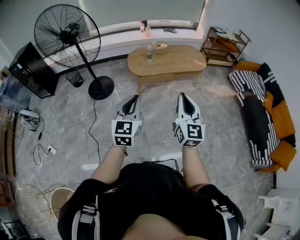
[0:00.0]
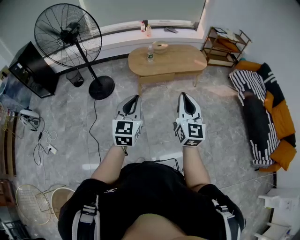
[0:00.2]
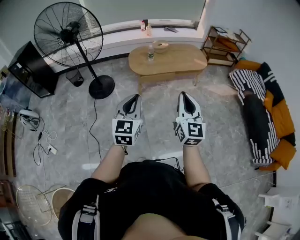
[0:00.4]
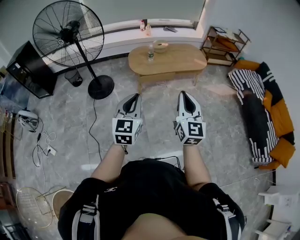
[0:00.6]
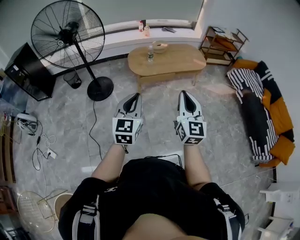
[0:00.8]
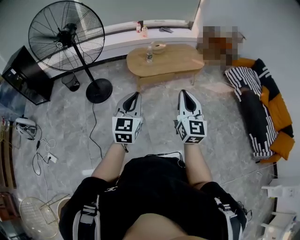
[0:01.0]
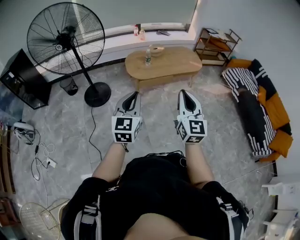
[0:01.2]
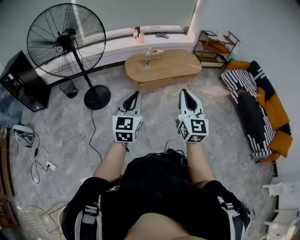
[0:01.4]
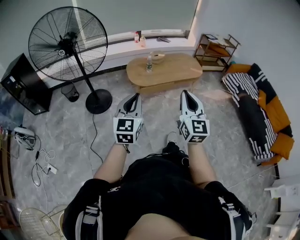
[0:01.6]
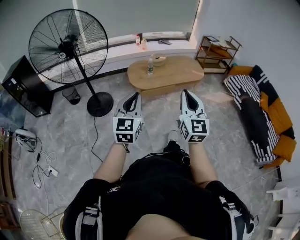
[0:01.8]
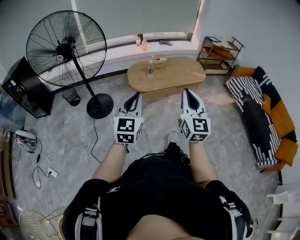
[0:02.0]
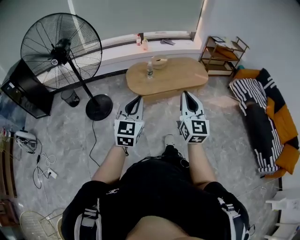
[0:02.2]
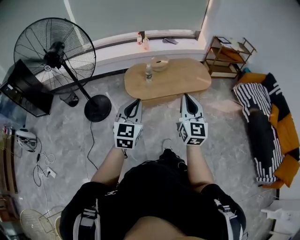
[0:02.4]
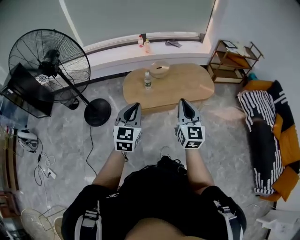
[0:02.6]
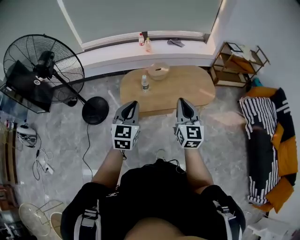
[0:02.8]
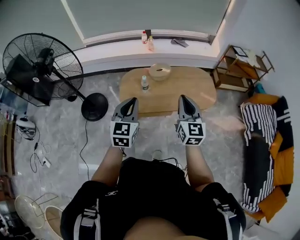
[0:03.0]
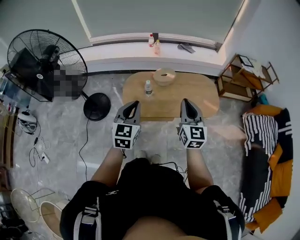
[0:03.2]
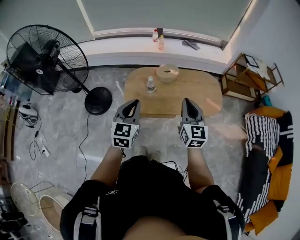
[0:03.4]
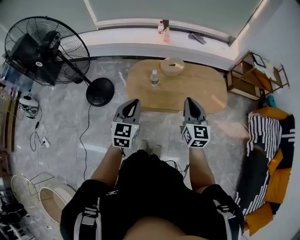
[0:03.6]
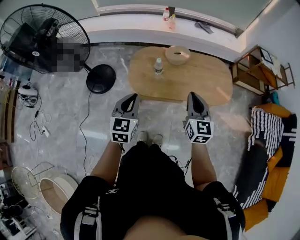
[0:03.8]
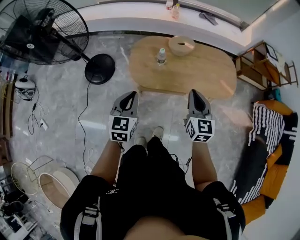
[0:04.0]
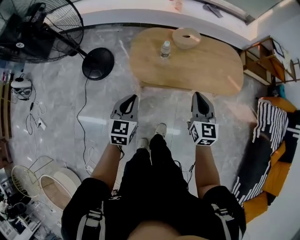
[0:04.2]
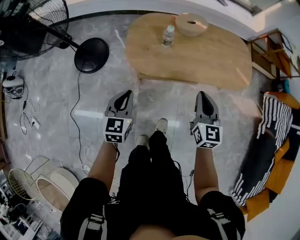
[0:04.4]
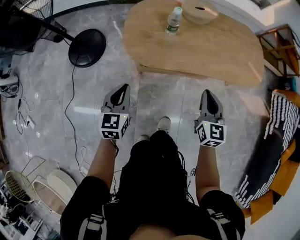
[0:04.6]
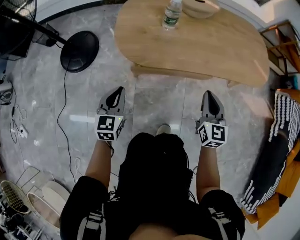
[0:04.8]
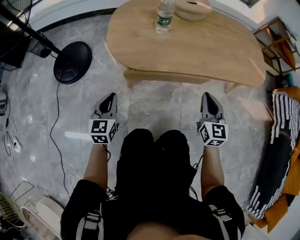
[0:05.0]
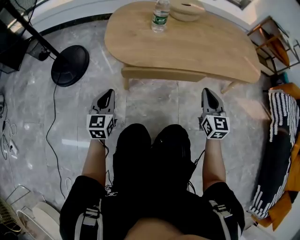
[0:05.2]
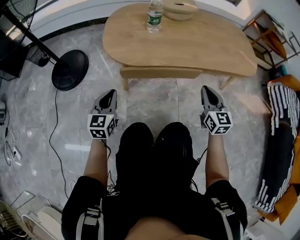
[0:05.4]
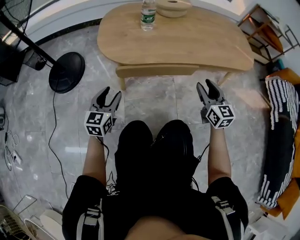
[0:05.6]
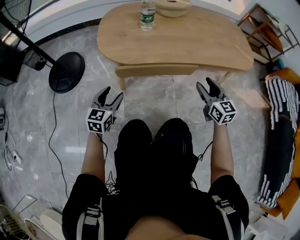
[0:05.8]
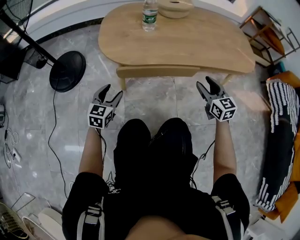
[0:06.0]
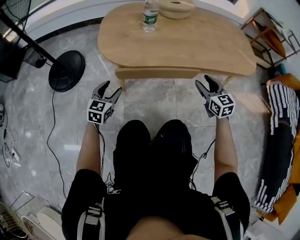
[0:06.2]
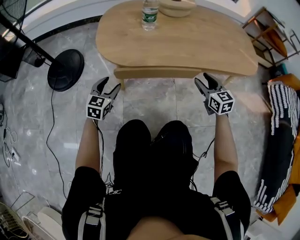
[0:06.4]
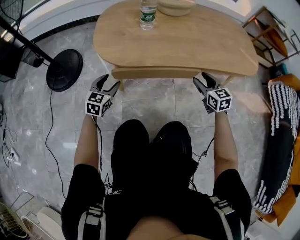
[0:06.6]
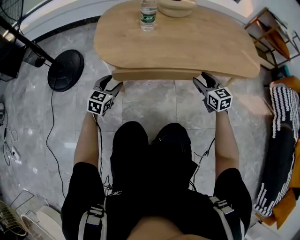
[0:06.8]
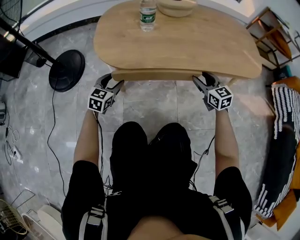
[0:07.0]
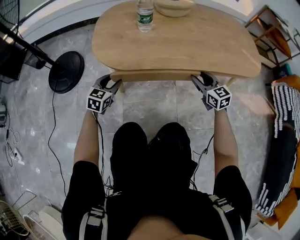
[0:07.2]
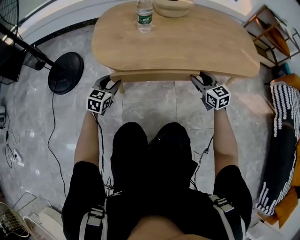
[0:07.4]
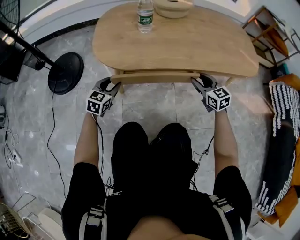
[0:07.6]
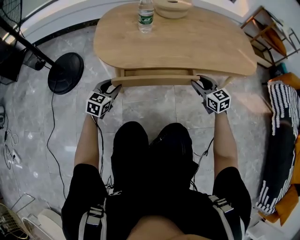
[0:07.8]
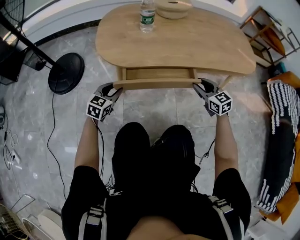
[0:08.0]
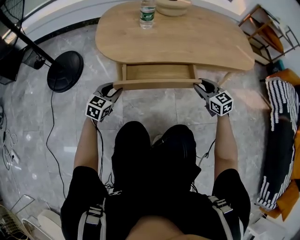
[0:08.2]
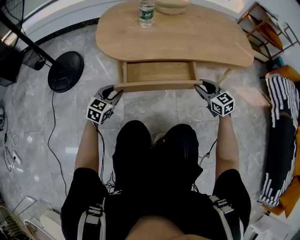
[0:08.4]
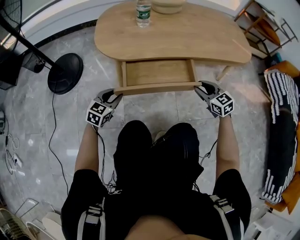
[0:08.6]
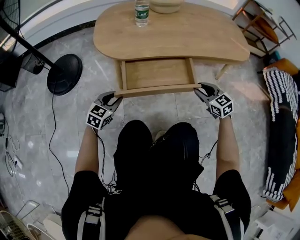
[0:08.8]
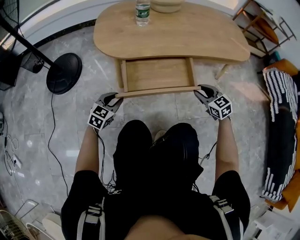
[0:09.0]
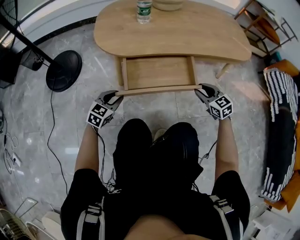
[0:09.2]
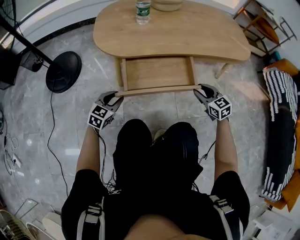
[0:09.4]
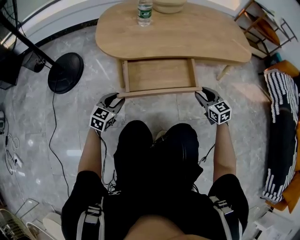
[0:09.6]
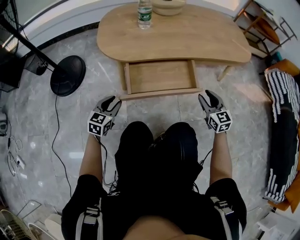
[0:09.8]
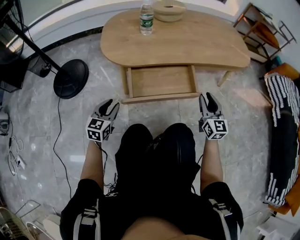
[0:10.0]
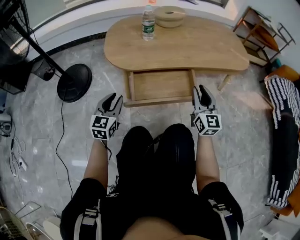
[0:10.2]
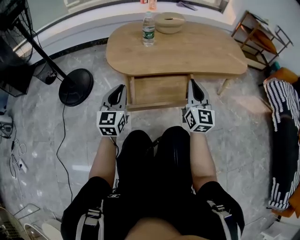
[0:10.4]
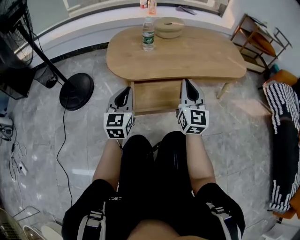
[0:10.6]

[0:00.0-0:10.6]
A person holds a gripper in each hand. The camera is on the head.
0:00.0 to 0:01.6: The two grippers go roughly 15 cm to the left.
0:01.6 to 0:03.0: Both grippers are carried forward, some 60 cm.
0:03.0 to 0:04.6: The grippers both shift downward by some 50 cm.
0:04.6 to 0:06.0: The right gripper shifts approximately 25 cm downward and to the right, and opens up; the left gripper shifts roughly 25 cm downward, and opens up.
0:06.0 to 0:07.6: The left gripper heads forward, covering about 10 cm; the right gripper shifts about 10 cm forward and downward.
0:07.6 to 0:09.0: Both grippers travel together backward, roughly 15 cm.
0:09.0 to 0:10.6: The right gripper moves upward and to the left, some 25 cm, points its fingers about 40 degrees further upward, and closes up. Meanwhile the left gripper heads upward, covering about 25 cm, changes its angle by about 40 degrees, and closes up.

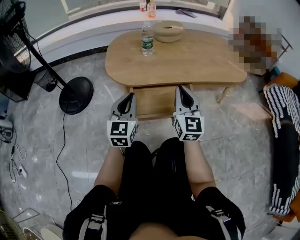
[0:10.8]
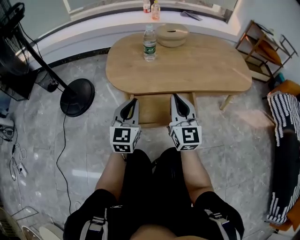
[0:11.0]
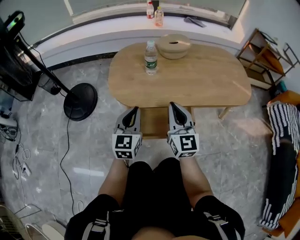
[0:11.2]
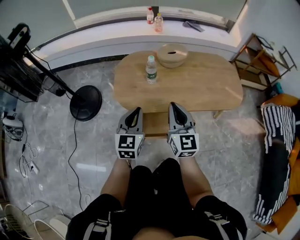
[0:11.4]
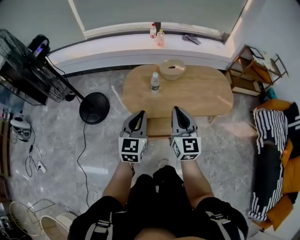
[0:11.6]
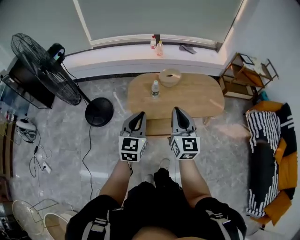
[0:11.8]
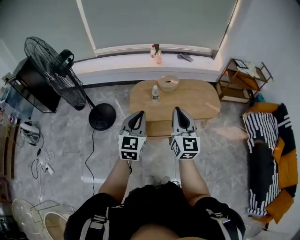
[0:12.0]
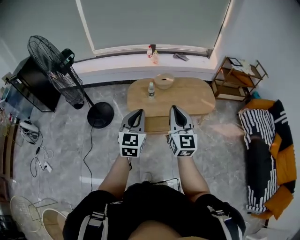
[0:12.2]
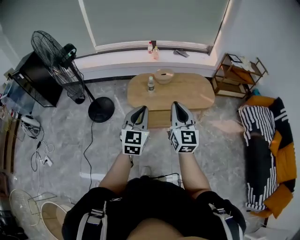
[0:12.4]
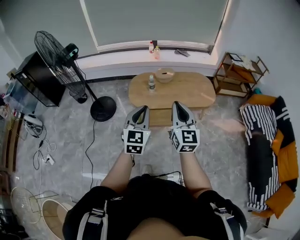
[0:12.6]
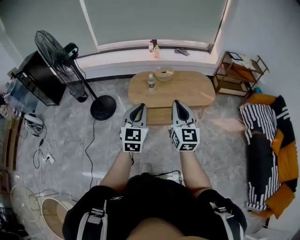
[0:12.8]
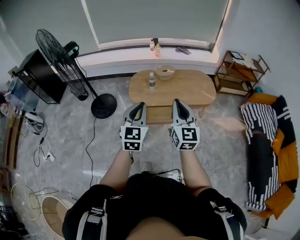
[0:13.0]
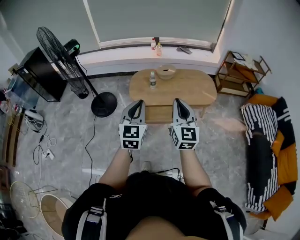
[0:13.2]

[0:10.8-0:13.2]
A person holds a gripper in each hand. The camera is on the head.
0:10.8 to 0:12.0: The two grippers go about 60 cm upward.
0:12.0 to 0:13.2: The two grippers go approximately 15 cm backward and to the right.

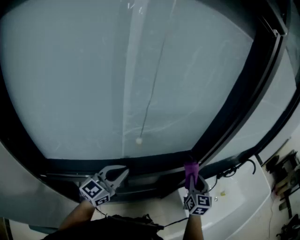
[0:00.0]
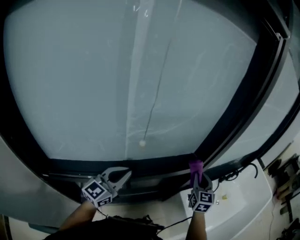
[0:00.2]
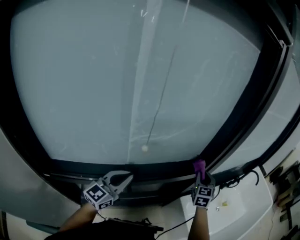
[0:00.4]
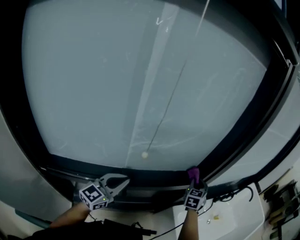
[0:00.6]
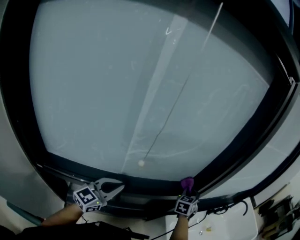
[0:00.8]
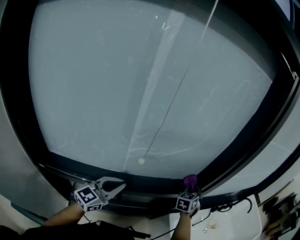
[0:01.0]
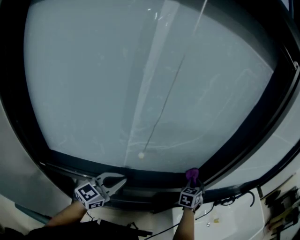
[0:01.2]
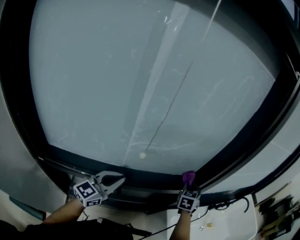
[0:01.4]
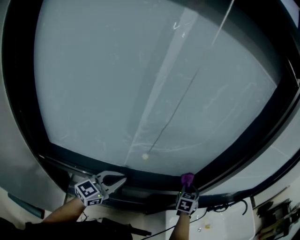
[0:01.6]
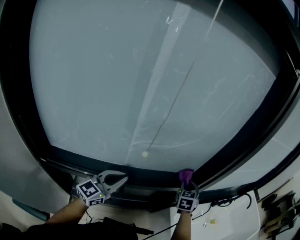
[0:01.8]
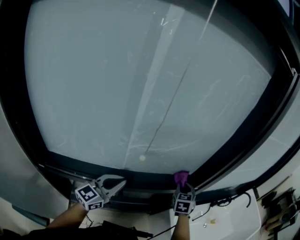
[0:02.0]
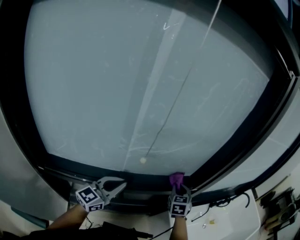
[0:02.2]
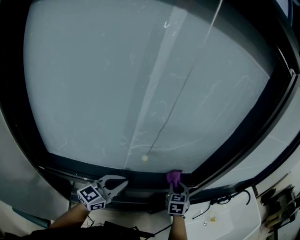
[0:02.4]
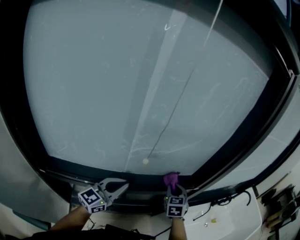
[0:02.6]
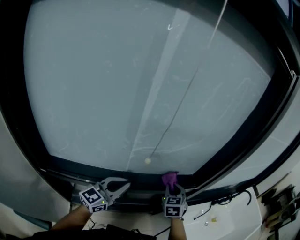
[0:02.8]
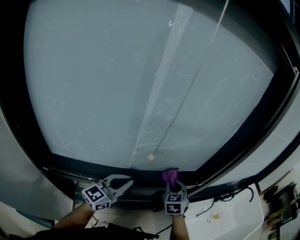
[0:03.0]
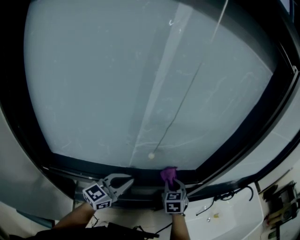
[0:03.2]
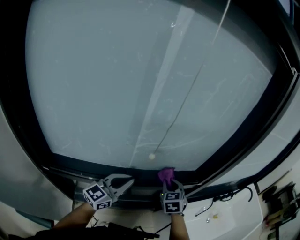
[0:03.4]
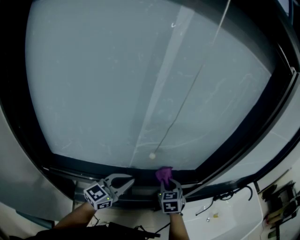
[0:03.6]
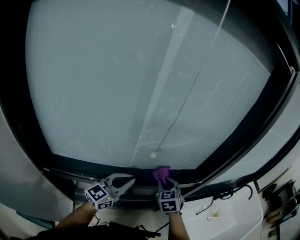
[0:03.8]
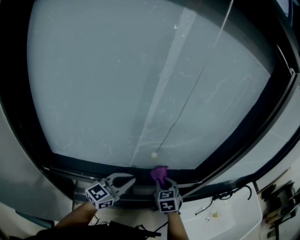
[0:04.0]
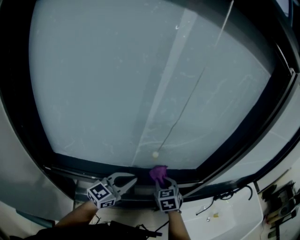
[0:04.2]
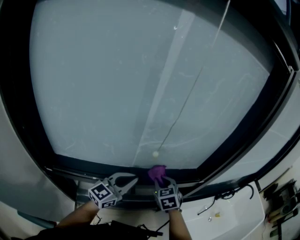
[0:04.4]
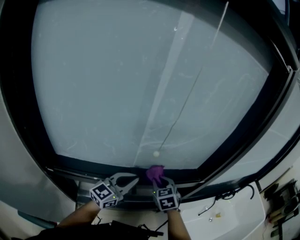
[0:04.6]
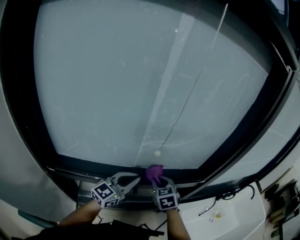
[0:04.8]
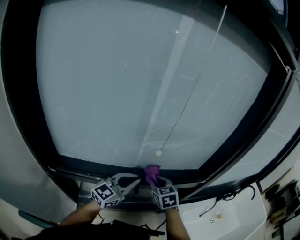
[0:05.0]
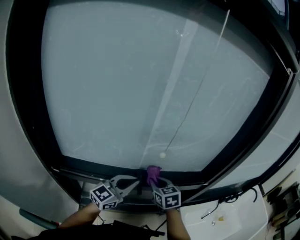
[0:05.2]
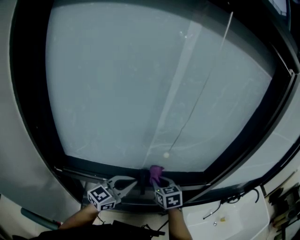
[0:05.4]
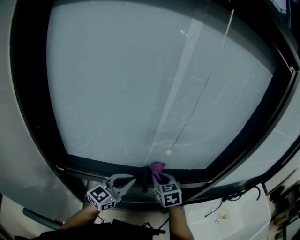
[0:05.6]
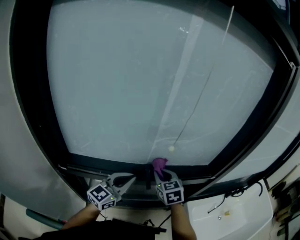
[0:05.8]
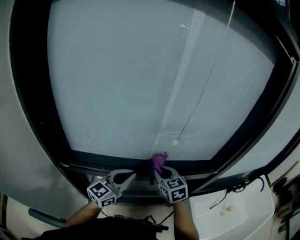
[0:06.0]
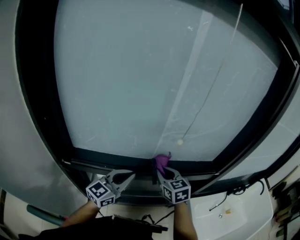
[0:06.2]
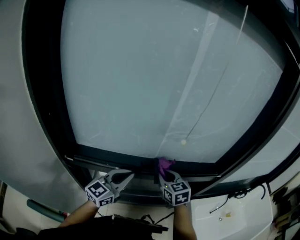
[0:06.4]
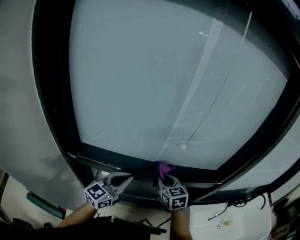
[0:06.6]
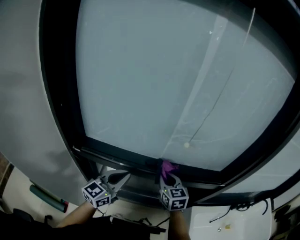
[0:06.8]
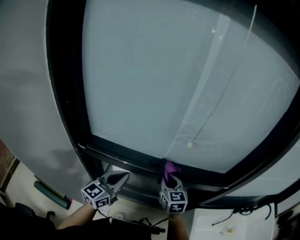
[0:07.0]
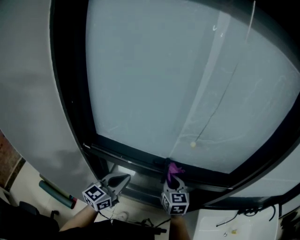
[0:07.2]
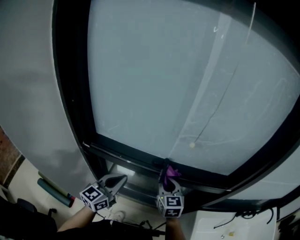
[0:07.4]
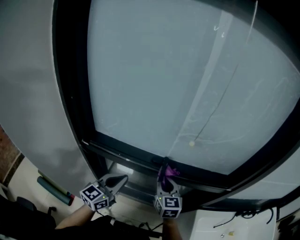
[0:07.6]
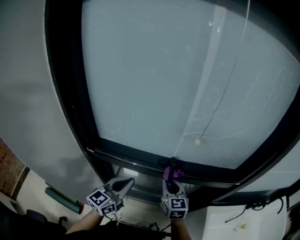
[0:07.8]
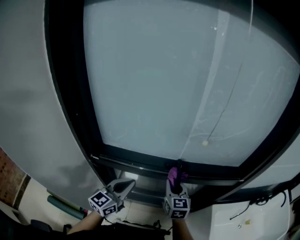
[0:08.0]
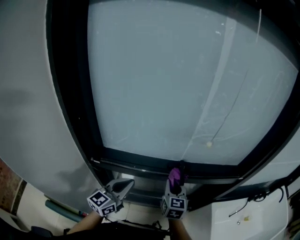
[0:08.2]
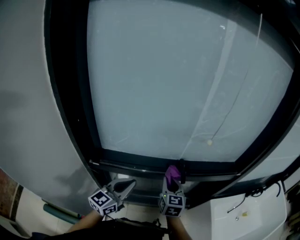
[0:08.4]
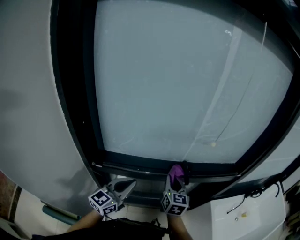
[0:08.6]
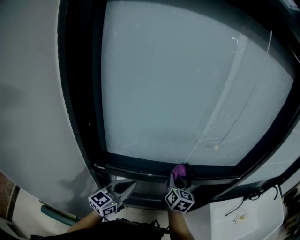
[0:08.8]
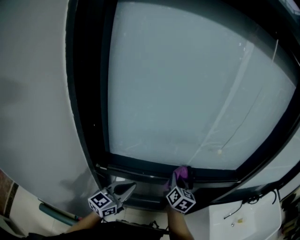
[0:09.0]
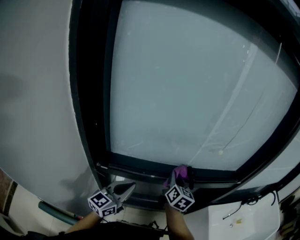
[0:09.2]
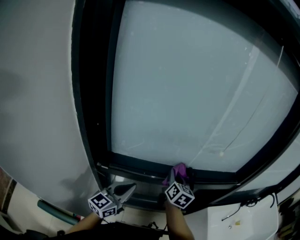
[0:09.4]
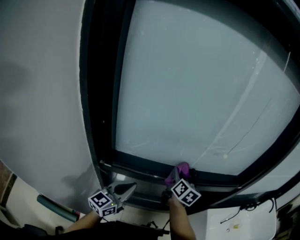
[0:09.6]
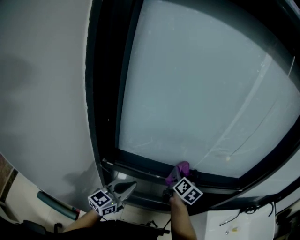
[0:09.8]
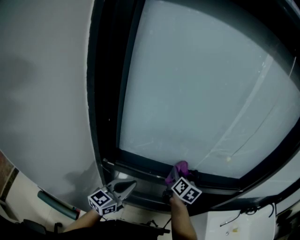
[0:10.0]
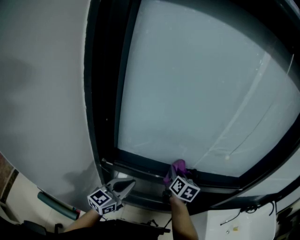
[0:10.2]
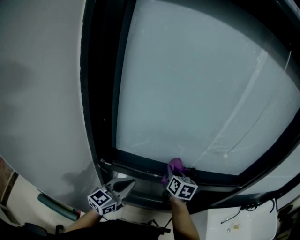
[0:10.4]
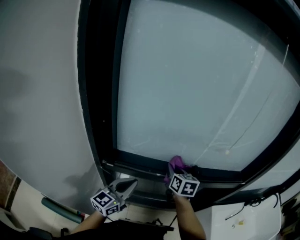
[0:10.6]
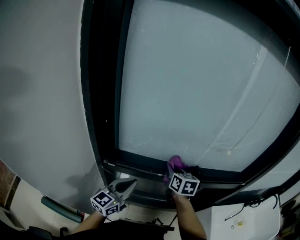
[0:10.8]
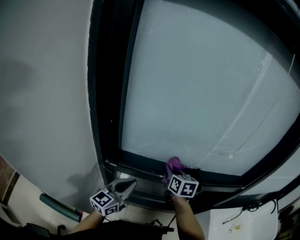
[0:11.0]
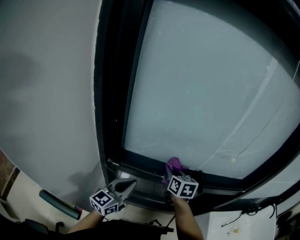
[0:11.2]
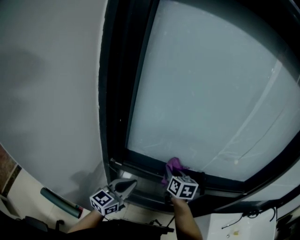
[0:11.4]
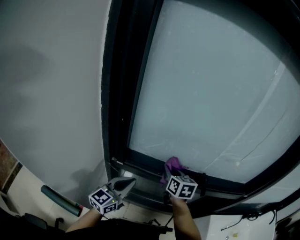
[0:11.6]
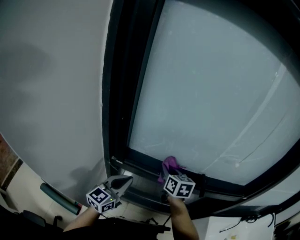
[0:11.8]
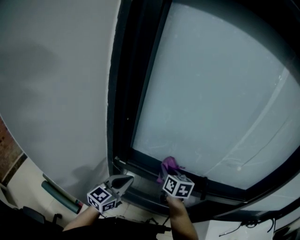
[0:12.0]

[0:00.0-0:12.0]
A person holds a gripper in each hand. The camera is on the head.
0:00.0 to 0:01.6: The right gripper travels forward by roughly 10 cm, and swivels roughly 30 degrees.
0:01.6 to 0:03.0: The right gripper travels to the left and backward by approximately 15 cm.
0:03.0 to 0:04.4: The right gripper travels to the left by roughly 5 cm.
0:04.4 to 0:06.0: The right gripper goes roughly 10 cm to the left. The left gripper travels to the left and backward by about 10 cm.
0:06.0 to 0:07.6: The right gripper ends up some 5 cm from where it was. Meanwhile the left gripper is displaced backward and to the left by approximately 10 cm, and changes its angle by some 20 degrees.
0:07.6 to 0:09.0: The left gripper heads to the left, covering some 10 cm. Meanwhile the right gripper travels to the left by about 5 cm, and swivels roughly 40 degrees.
0:09.0 to 0:10.4: The right gripper goes approximately 5 cm to the left.
0:10.4 to 0:12.0: The left gripper shifts approximately 5 cm to the left, while the right gripper heads to the left, covering some 10 cm.
